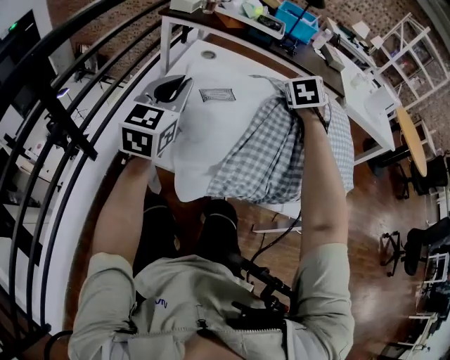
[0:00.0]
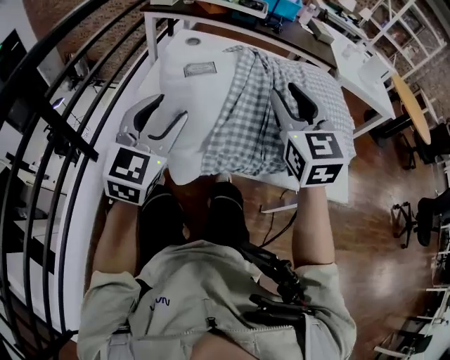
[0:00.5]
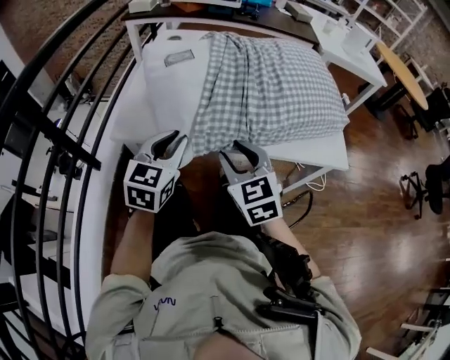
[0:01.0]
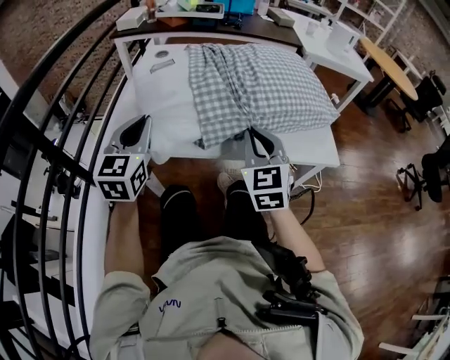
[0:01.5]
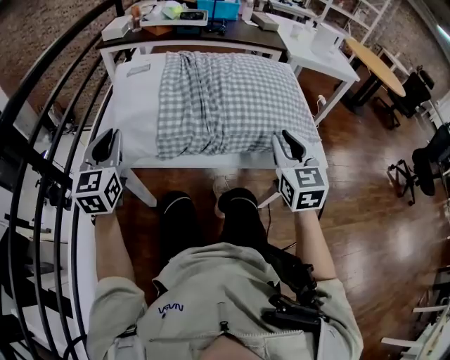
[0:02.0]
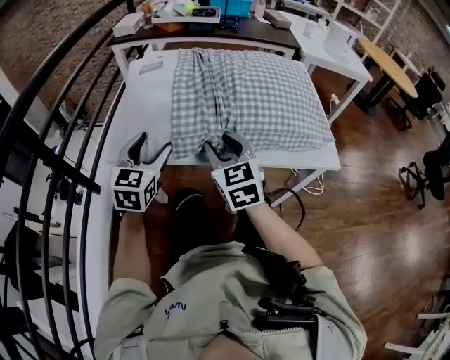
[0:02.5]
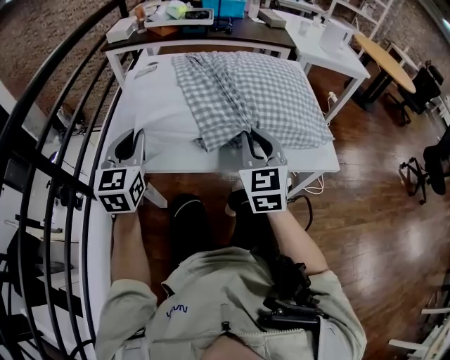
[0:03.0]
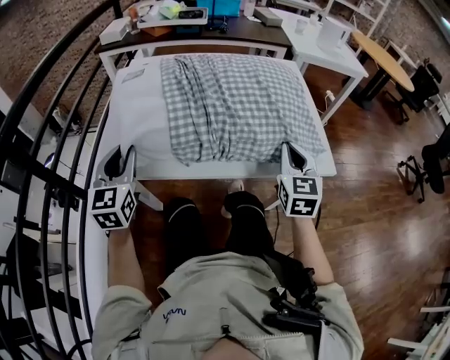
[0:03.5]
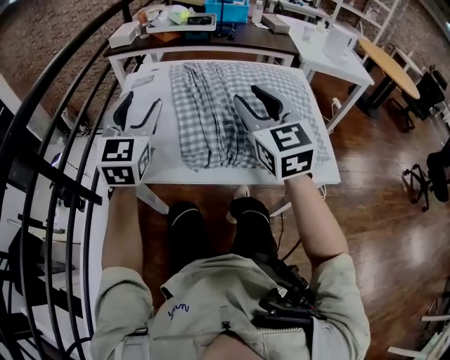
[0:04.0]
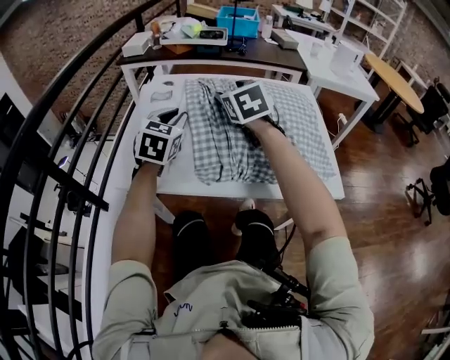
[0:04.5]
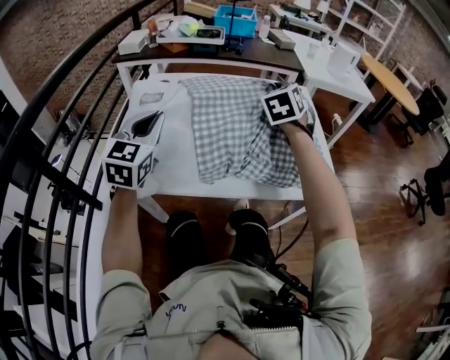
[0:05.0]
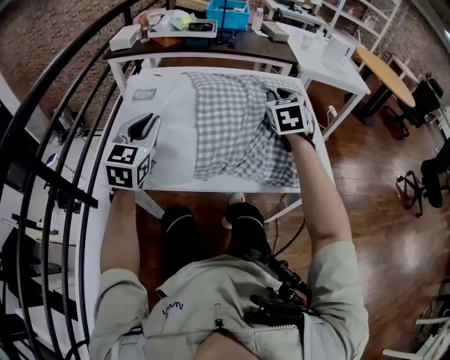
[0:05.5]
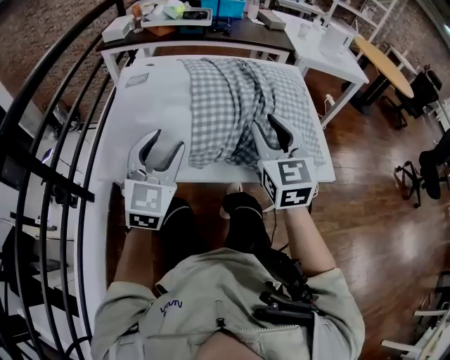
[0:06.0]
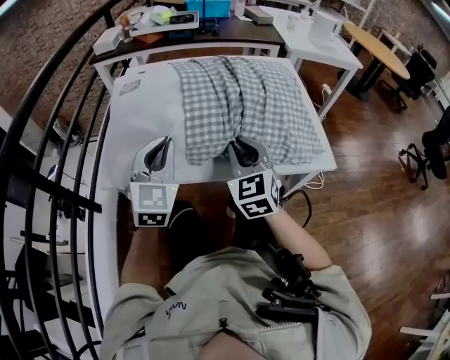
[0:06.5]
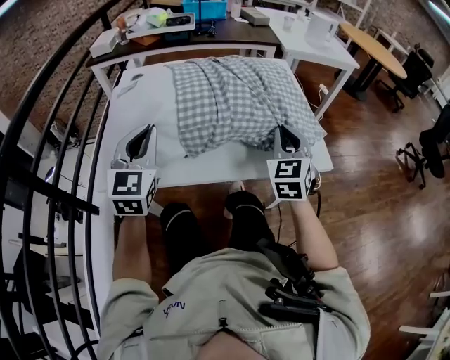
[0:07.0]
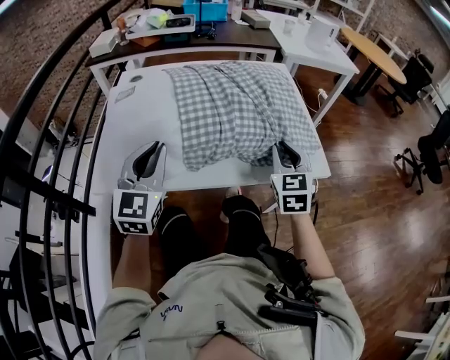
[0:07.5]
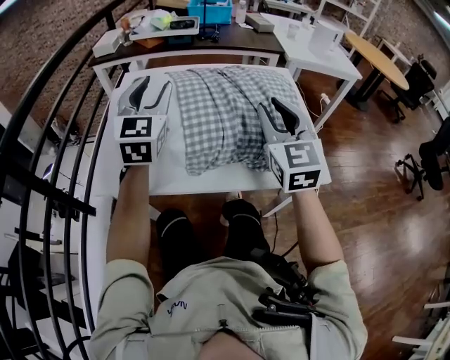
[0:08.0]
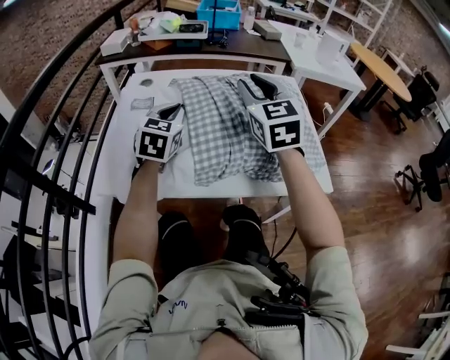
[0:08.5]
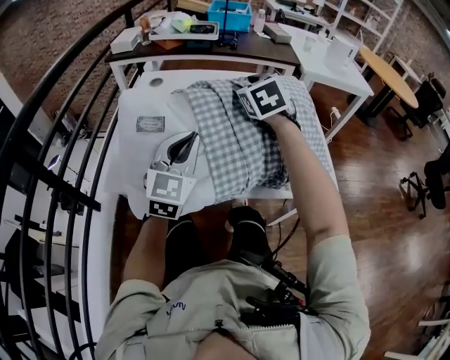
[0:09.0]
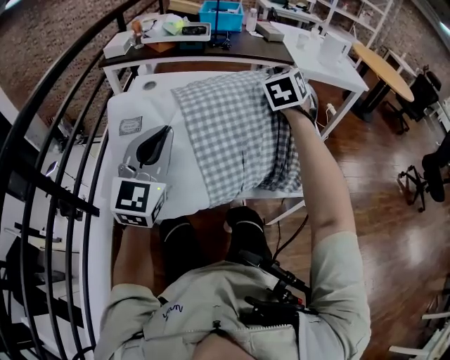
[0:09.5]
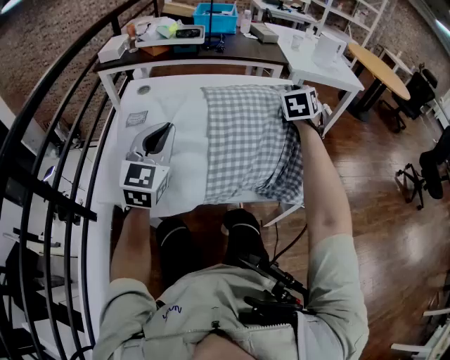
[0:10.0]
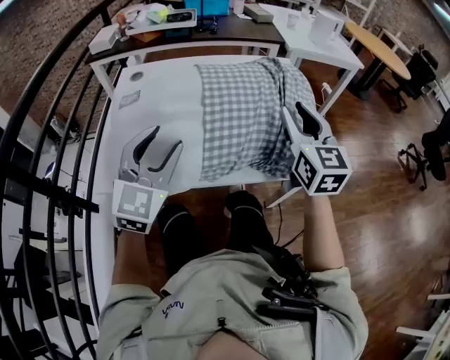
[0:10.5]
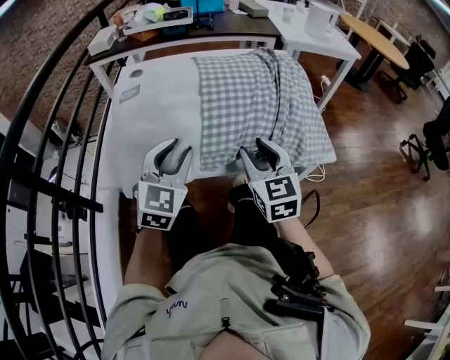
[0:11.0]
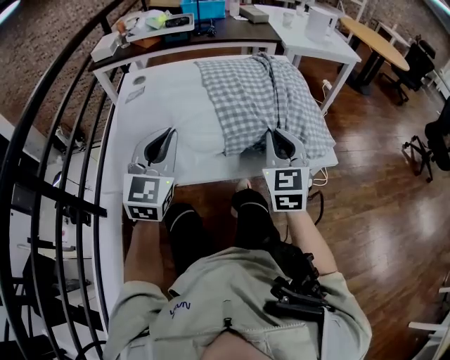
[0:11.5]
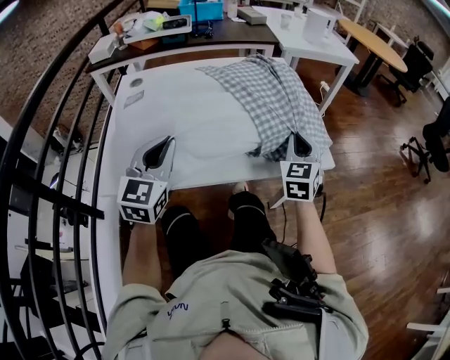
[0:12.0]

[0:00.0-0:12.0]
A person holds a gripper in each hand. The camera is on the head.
0:00.0 to 0:02.0: The right gripper travels backward by some 30 cm, and changes its angle by roughly 30 degrees. Meanwhile the left gripper heads backward and downward, covering some 15 cm, and opens and closes again.
0:02.0 to 0:04.0: The right gripper moves left and right over roughly 25 cm, changing direction 2 times. Meanwhile the left gripper is displaced upward, to the right and forward by about 15 cm, and opens.
0:04.0 to 0:06.0: The left gripper is displaced downward, backward and to the right by approximately 10 cm, and closes, then opens again. The right gripper travels downward and to the right by roughly 10 cm, moves some 15 cm forward and comes back, and closes, then opens again.
0:06.0 to 0:08.0: The left gripper goes approximately 15 cm forward and upward, and closes, then opens again. The right gripper swings left and right, approximately 15 cm each way, with 2 reversals, and closes and opens again.
0:08.0 to 0:10.0: The right gripper travels forward and to the right by approximately 20 cm, turns by approximately 40 degrees, and closes its fingers. The left gripper goes some 10 cm downward and backward, and closes.
0:10.0 to 0:12.0: The left gripper heads backward, covering roughly 5 cm, and opens and closes again. Meanwhile the right gripper travels backward and downward by roughly 20 cm, and opens, then closes once more.

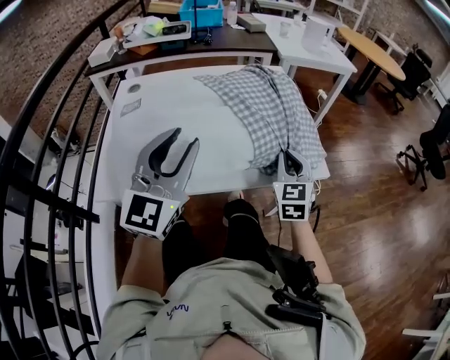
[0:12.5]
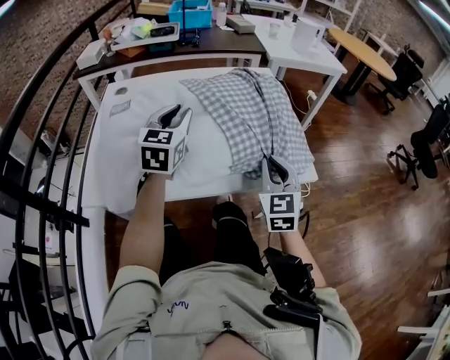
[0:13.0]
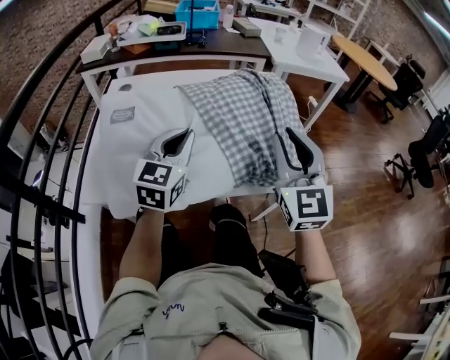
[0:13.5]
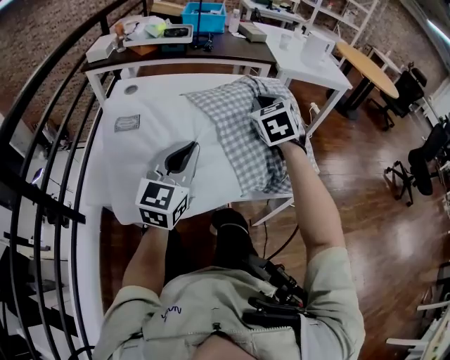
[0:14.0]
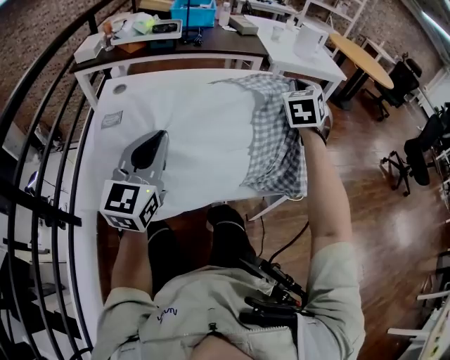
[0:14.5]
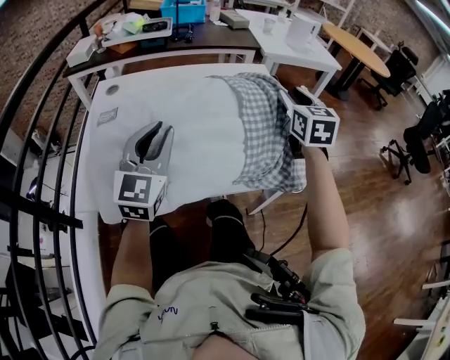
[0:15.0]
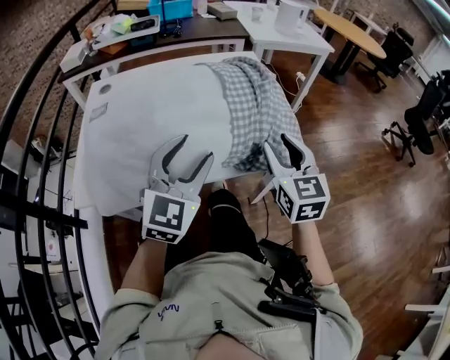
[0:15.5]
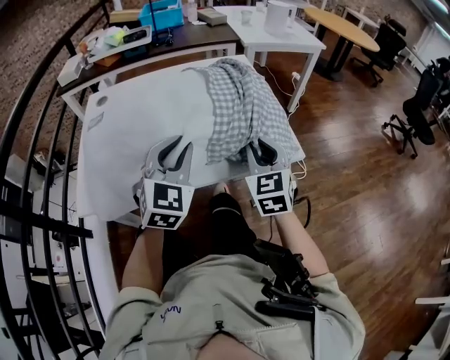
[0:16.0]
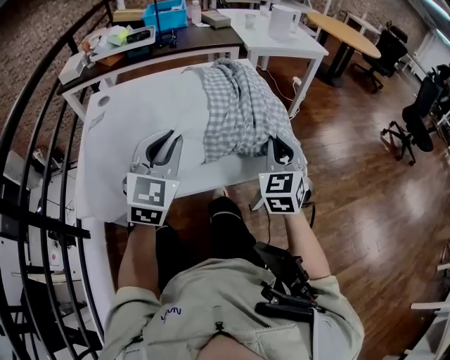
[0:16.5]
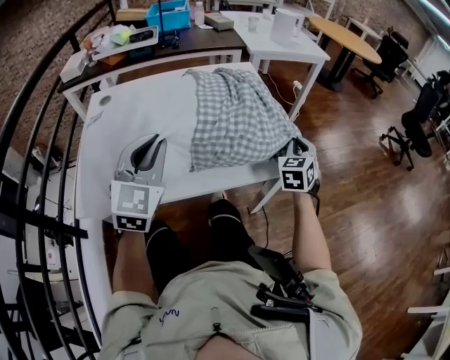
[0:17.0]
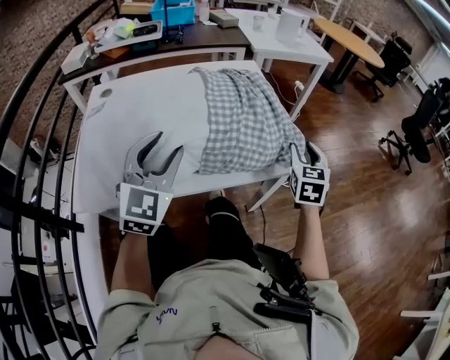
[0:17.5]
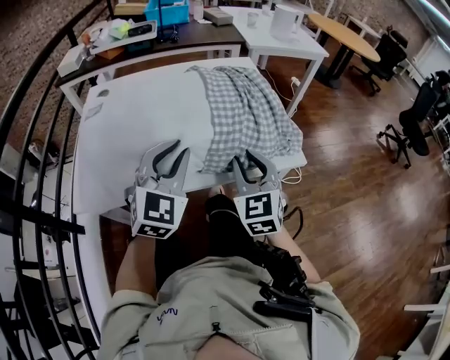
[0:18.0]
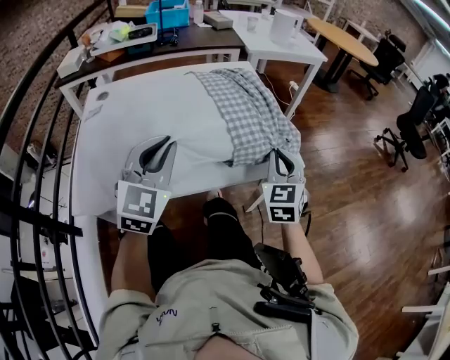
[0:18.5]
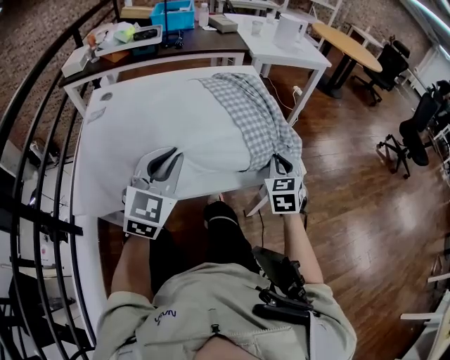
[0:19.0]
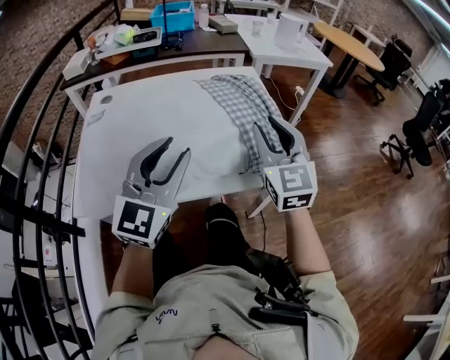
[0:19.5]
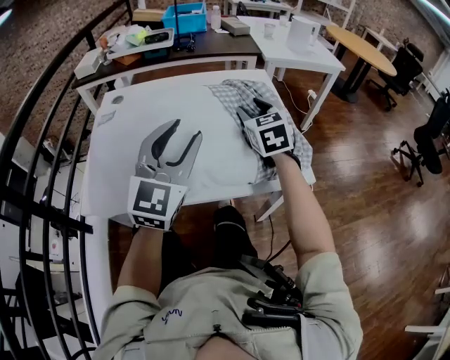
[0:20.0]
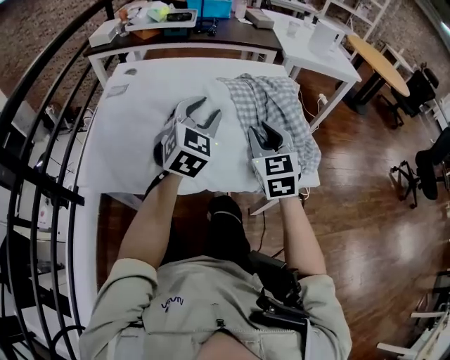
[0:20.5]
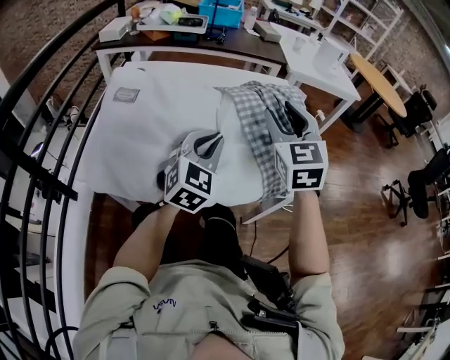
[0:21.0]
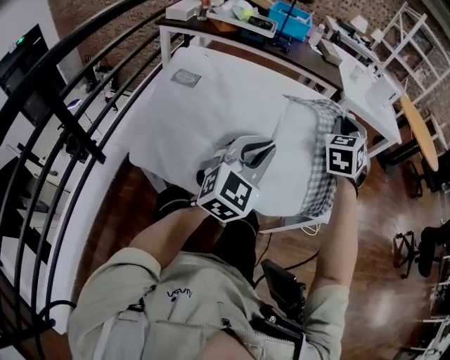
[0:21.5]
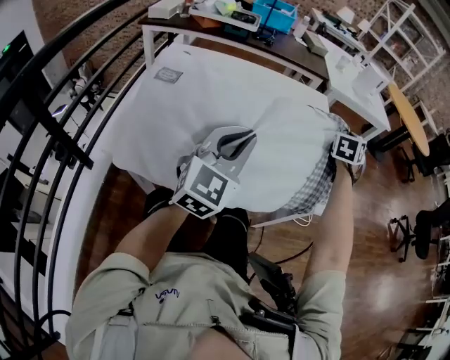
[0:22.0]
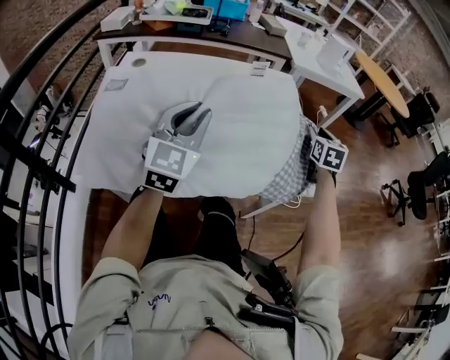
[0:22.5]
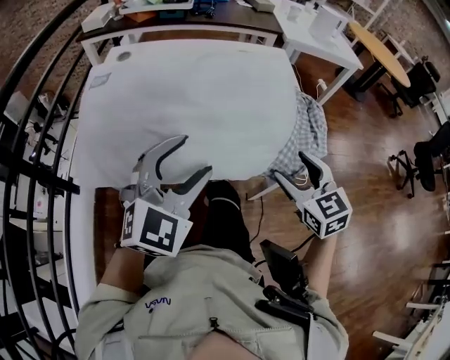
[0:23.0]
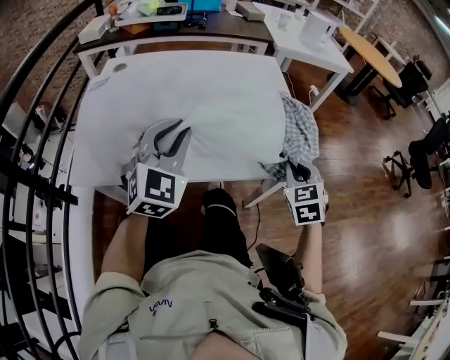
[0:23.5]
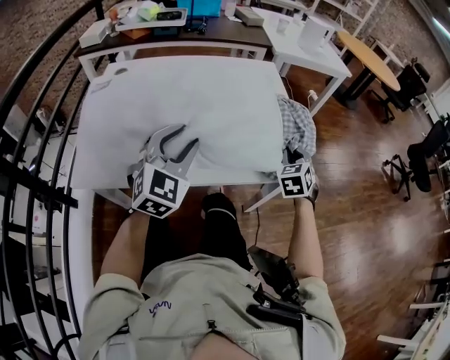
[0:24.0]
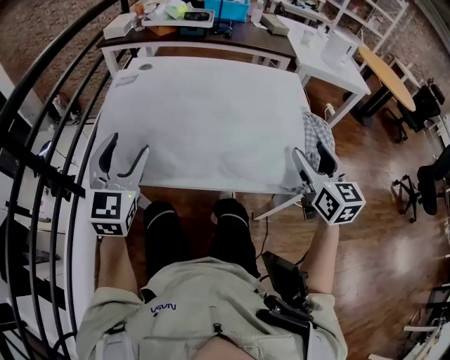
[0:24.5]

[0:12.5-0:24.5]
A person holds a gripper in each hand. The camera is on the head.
0:12.5 to 0:14.5: The right gripper moves forward and upward, approximately 25 cm, while the left gripper travels forward and back again, some 15 cm each way.
0:14.5 to 0:16.5: The left gripper shifts about 10 cm to the right, swivels roughly 20 degrees, and opens, then closes again; the right gripper travels backward and downward by some 20 cm, and opens, then closes once more.
0:16.5 to 0:18.5: The right gripper goes left and right, roughly 15 cm each way, reversing 2 times, and opens, then closes once more. Meanwhile the left gripper opens and closes again.
0:18.5 to 0:20.5: The left gripper heads forward, covering approximately 10 cm, and opens its fingers; the right gripper goes up and down, roughly 15 cm each way, reversing 2 times, rotates some 20 degrees, and opens.
0:20.5 to 0:22.5: The left gripper moves backward, roughly 5 cm; the right gripper heads to the right and forward, covering about 25 cm, and swivels roughly 30 degrees.
0:22.5 to 0:24.5: The left gripper shifts by about 20 cm, and opens, while the right gripper ends up about 20 cm from where it was, swivels about 30 degrees, and opens.

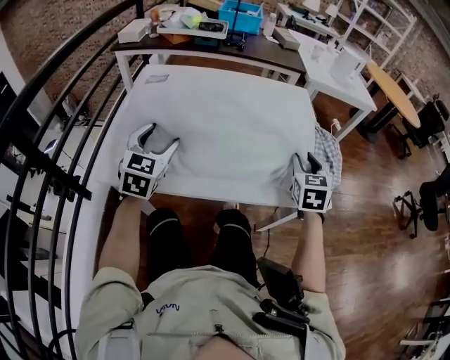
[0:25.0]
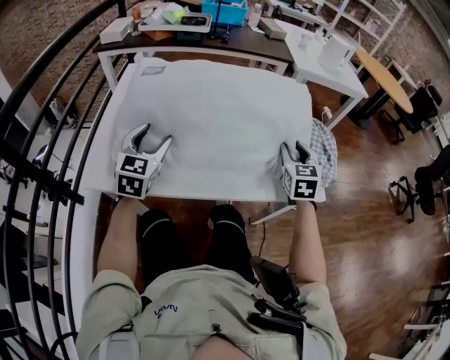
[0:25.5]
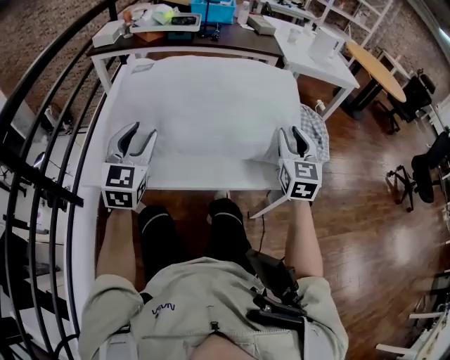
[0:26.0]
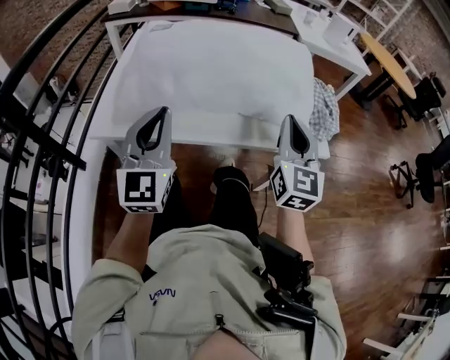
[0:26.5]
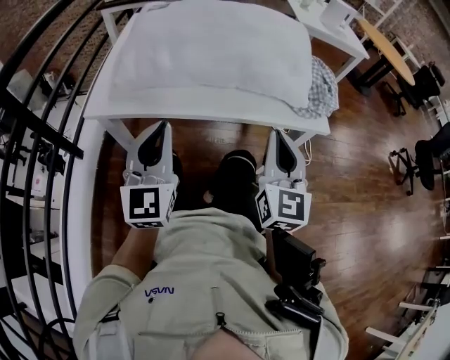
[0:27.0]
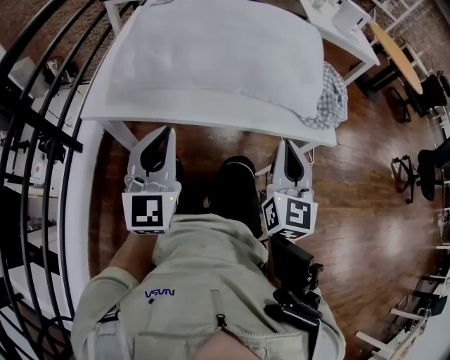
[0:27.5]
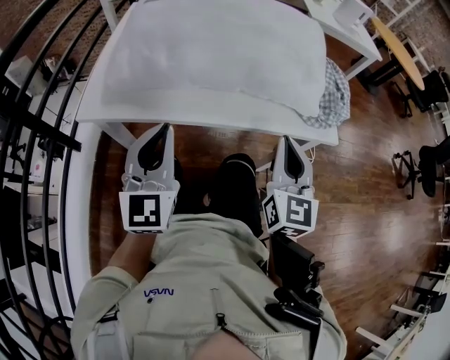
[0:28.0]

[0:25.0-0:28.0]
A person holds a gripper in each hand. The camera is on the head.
0:25.0 to 0:26.5: The left gripper shifts some 15 cm backward, upward and to the right, rotates about 30 degrees, and closes. The right gripper shifts about 15 cm backward, upward and to the left, swivels about 30 degrees, and closes up.
0:26.5 to 0:28.0: The right gripper moves downward and backward, about 10 cm. Meanwhile the left gripper moves downward, roughly 5 cm.
